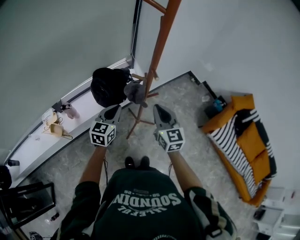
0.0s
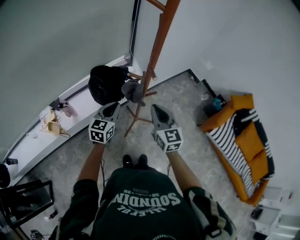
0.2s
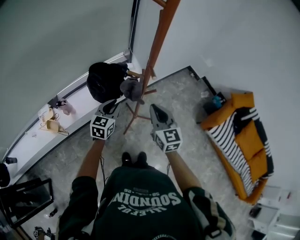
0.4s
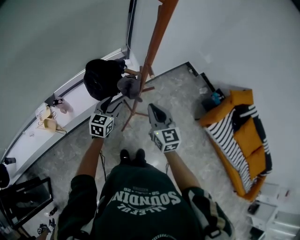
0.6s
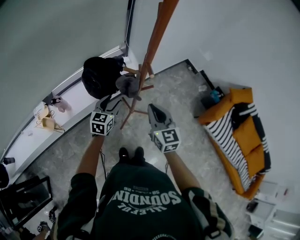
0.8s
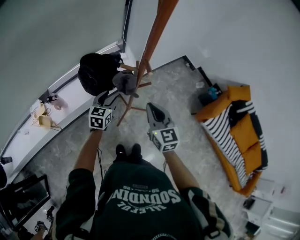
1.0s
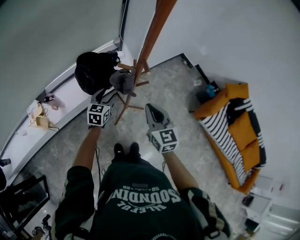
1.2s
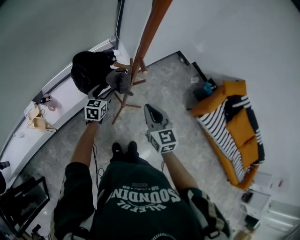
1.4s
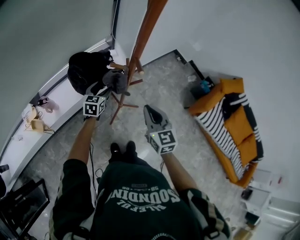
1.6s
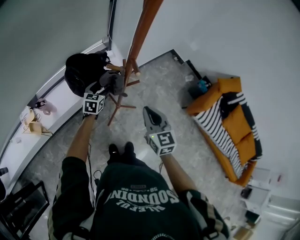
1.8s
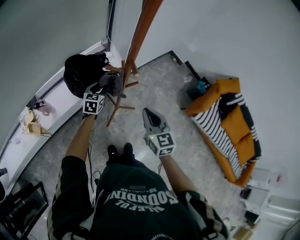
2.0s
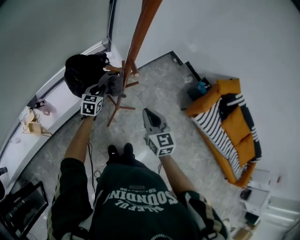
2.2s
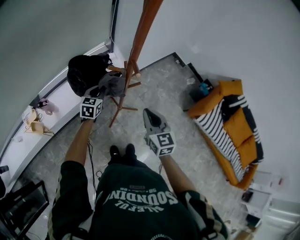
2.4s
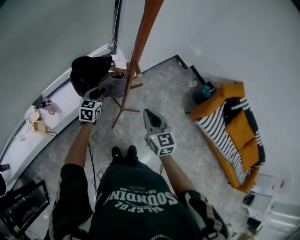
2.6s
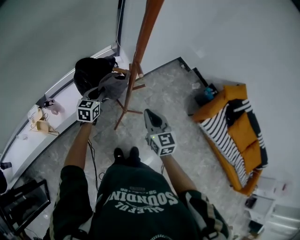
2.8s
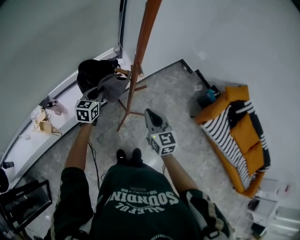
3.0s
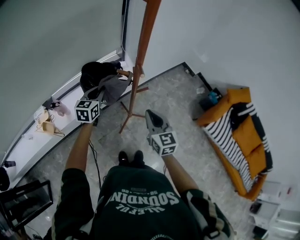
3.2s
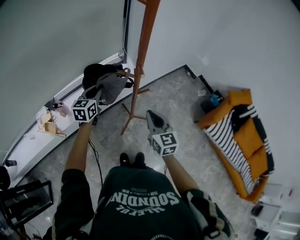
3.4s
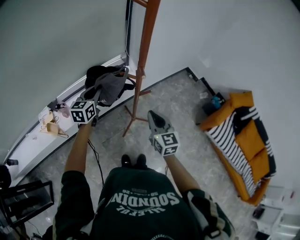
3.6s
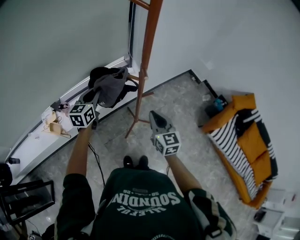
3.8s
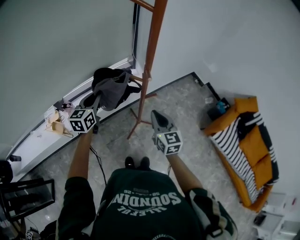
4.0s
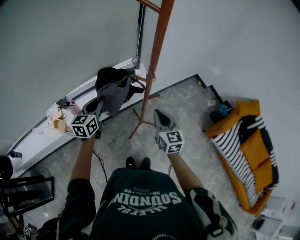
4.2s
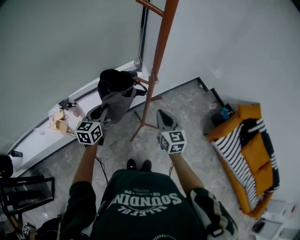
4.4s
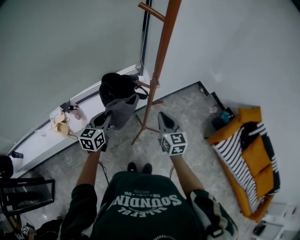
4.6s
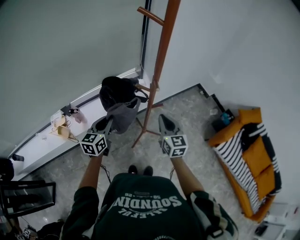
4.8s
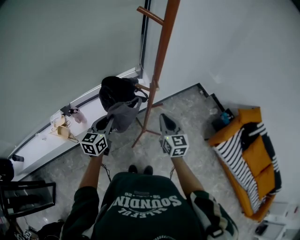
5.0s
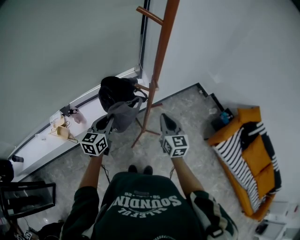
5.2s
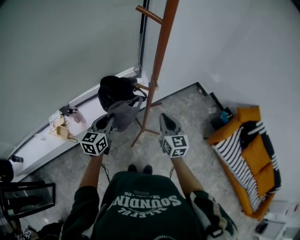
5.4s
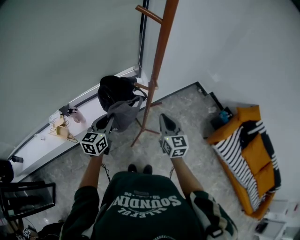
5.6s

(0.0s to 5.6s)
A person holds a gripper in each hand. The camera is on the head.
0.0s - 1.4s: The right gripper heads downward, covering some 5 cm. Meanwhile the left gripper shifts some 15 cm downward and forward, and opens.
1.4s - 2.8s: The left gripper is displaced upward by roughly 5 cm, and closes up.
2.8s - 4.2s: The left gripper travels upward, backward and to the left by roughly 15 cm.
4.2s - 5.6s: The left gripper moves about 5 cm.

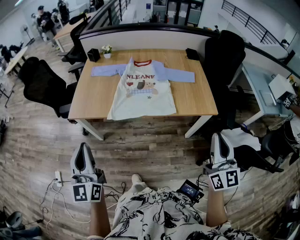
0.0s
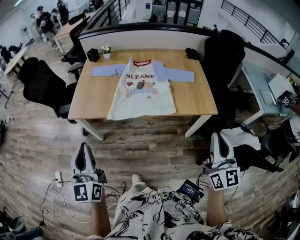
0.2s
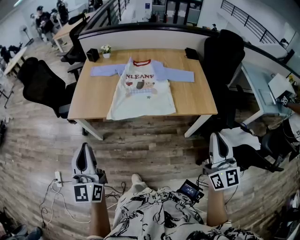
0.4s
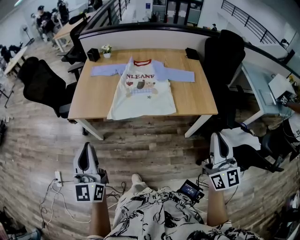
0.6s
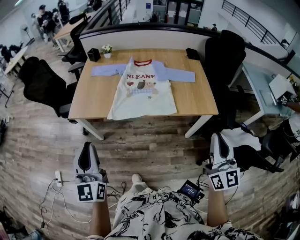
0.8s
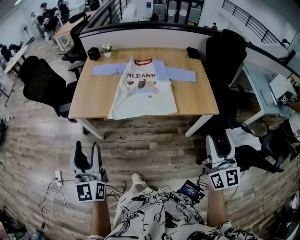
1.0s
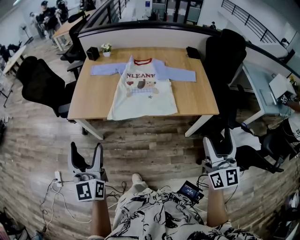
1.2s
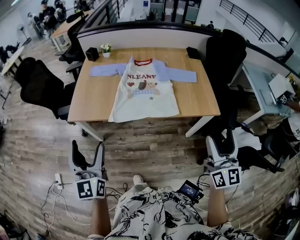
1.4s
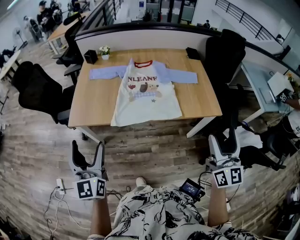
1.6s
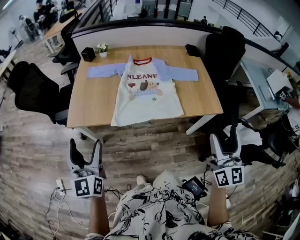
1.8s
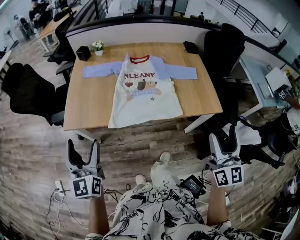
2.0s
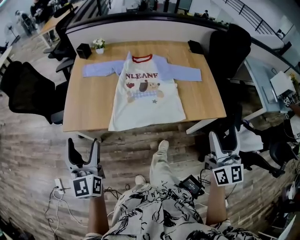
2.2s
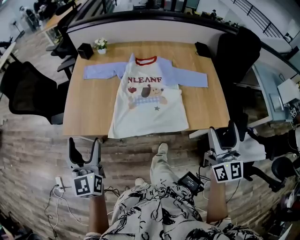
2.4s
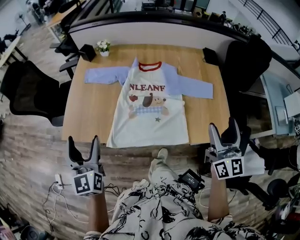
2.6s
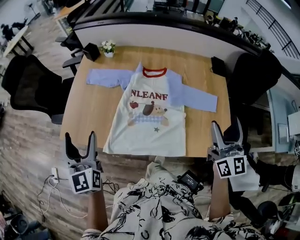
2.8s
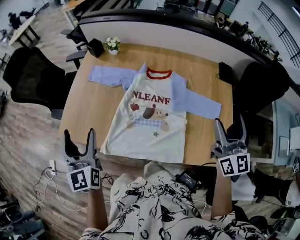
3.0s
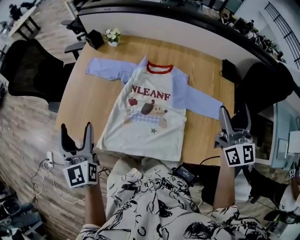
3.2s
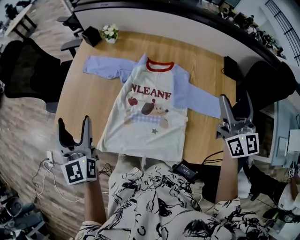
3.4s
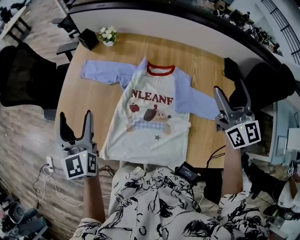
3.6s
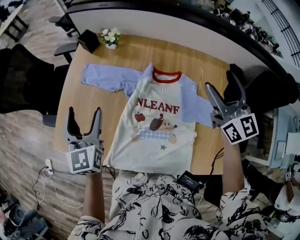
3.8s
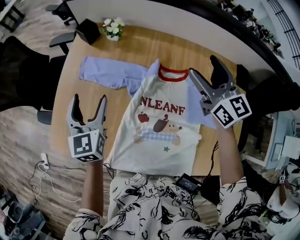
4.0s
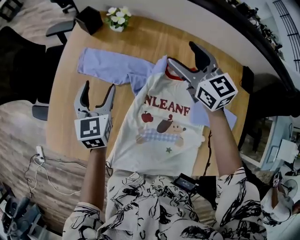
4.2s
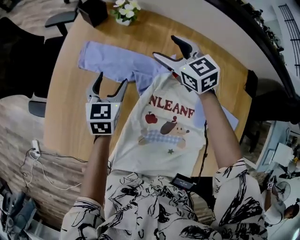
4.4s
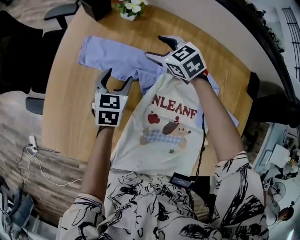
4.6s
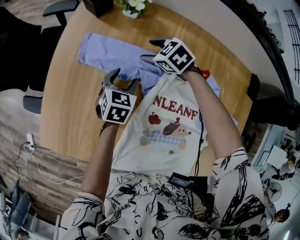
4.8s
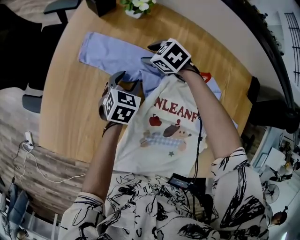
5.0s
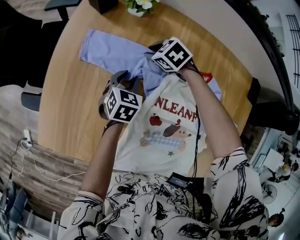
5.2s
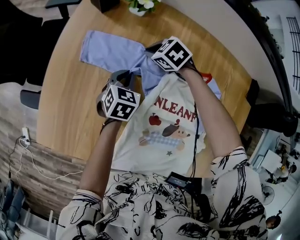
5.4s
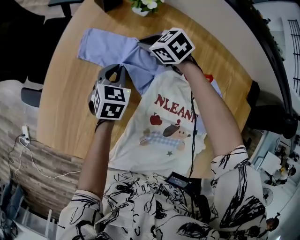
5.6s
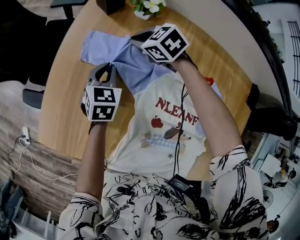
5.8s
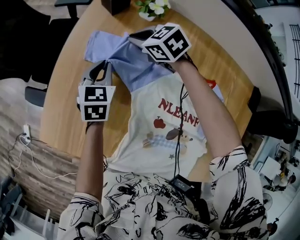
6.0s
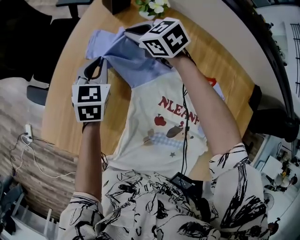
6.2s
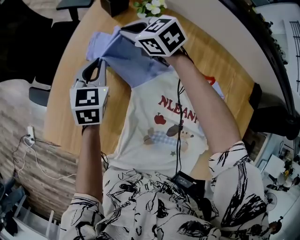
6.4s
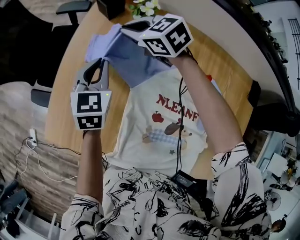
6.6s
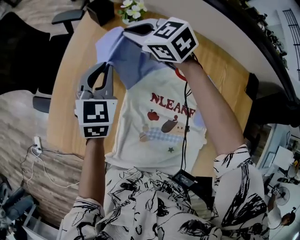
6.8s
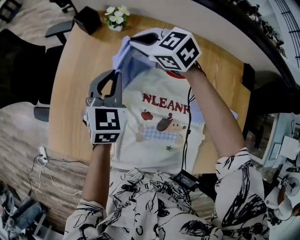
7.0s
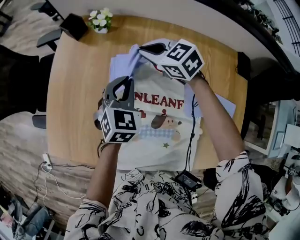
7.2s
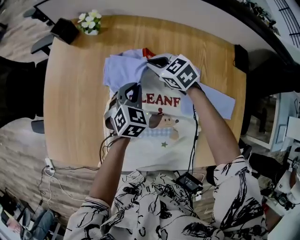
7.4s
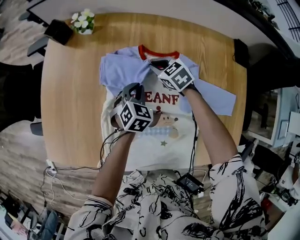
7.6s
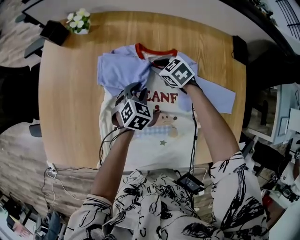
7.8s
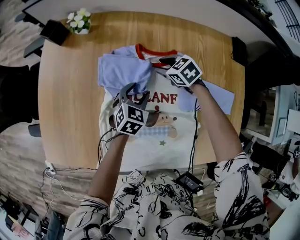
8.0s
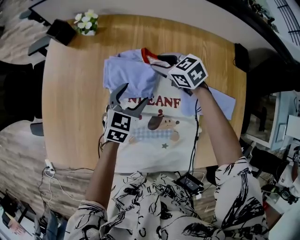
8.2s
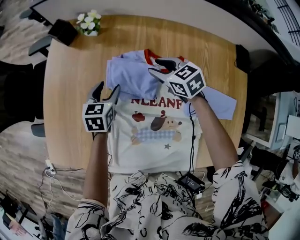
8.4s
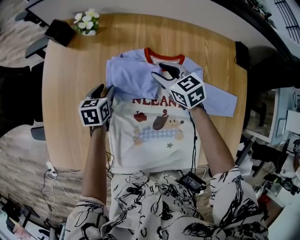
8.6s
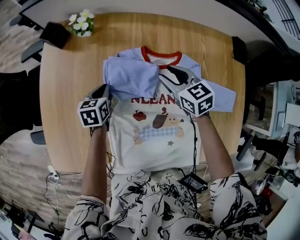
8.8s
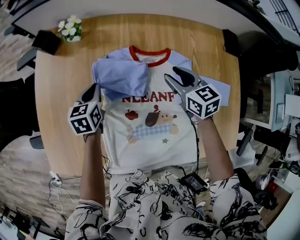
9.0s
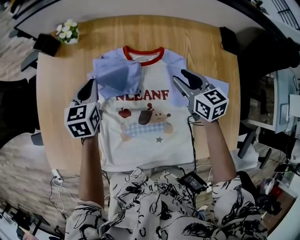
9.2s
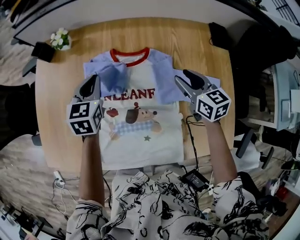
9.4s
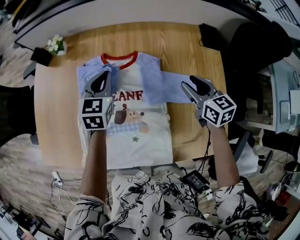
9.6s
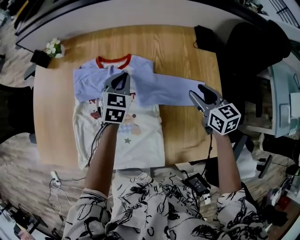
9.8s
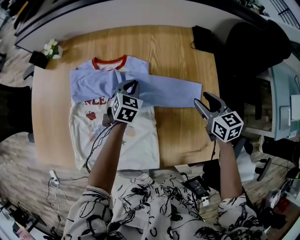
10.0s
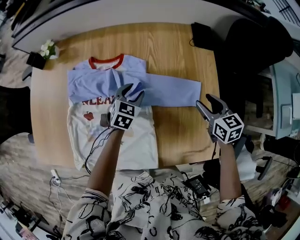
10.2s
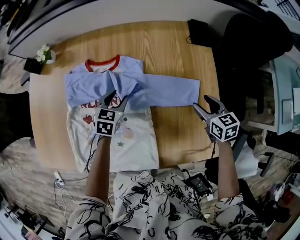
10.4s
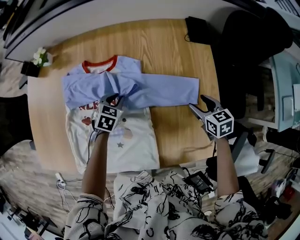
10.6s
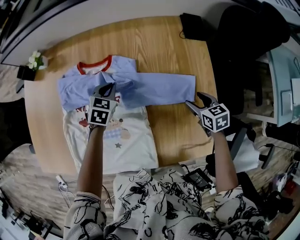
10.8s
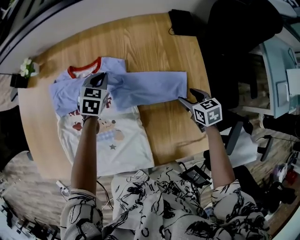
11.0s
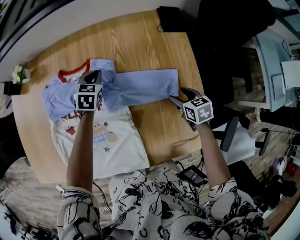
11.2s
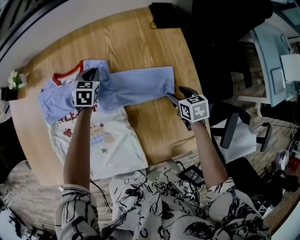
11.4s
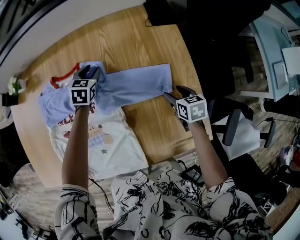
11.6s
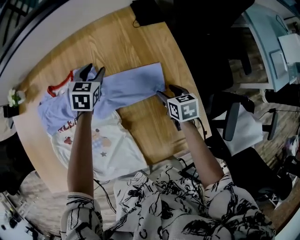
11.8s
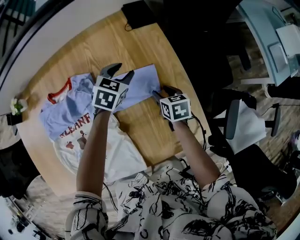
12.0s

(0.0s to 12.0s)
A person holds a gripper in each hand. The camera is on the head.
0.0s - 1.6s: The right gripper ends up roughly 5 cm from where it was, and opens its fingers; the left gripper is displaced forward by approximately 10 cm, and opens.
1.6s - 3.0s: Both grippers move forward, about 40 cm. The left gripper rotates some 20 degrees.
3.0s - 4.4s: The left gripper moves forward and downward, approximately 40 cm, and changes its angle by some 30 degrees. Meanwhile the right gripper shifts approximately 60 cm forward, to the left and downward, and tilts its fingers about 40 degrees downward.
4.4s - 6.0s: The right gripper is displaced to the left, forward and downward by approximately 20 cm, rotates some 30 degrees, and closes up; the left gripper is displaced forward and to the left by about 10 cm, moves roughly 10 cm downward and comes back, and closes.
6.0s - 7.6s: The right gripper goes upward and returns, about 15 cm each way, and changes its angle by some 30 degrees. The left gripper goes upward and returns, roughly 15 cm each way, and swivels some 40 degrees.
7.6s - 9.0s: The left gripper travels to the left and forward by about 15 cm, turns by about 30 degrees, and opens, then closes again. Meanwhile the right gripper goes approximately 15 cm upward, backward and to the right, rotates approximately 30 degrees, and opens up.
9.0s - 10.4s: The right gripper goes approximately 40 cm to the right and backward. Meanwhile the left gripper travels to the right by about 35 cm, swivels some 30 degrees, and opens its fingers.
10.4s - 12.0s: The left gripper goes about 30 cm to the right, changes its angle by about 30 degrees, and closes and opens again. Meanwhile the right gripper shifts about 10 cm downward, and changes its angle by roughly 30 degrees.

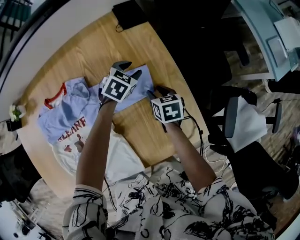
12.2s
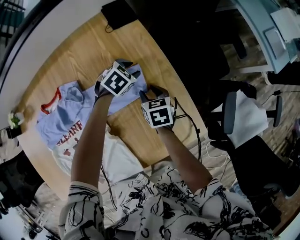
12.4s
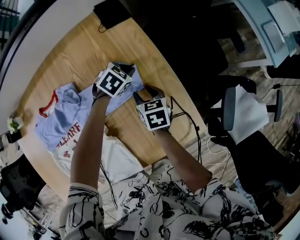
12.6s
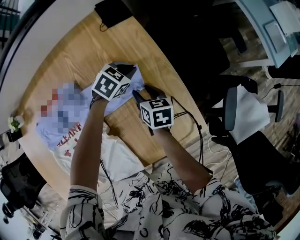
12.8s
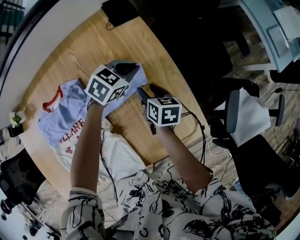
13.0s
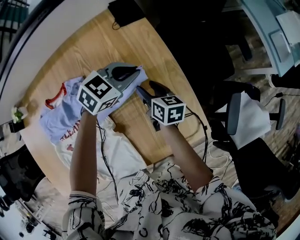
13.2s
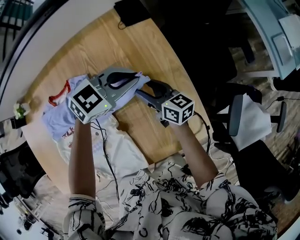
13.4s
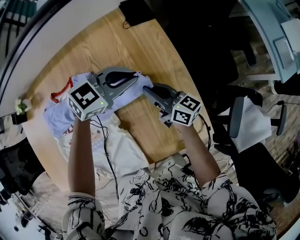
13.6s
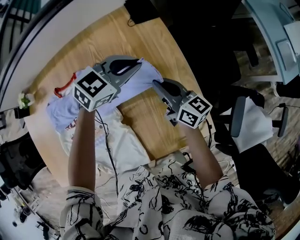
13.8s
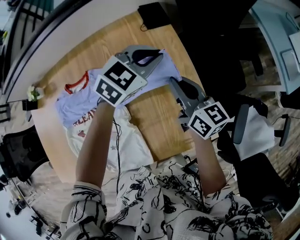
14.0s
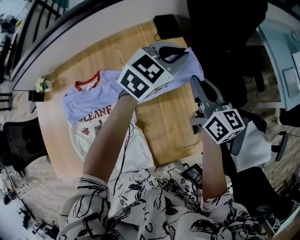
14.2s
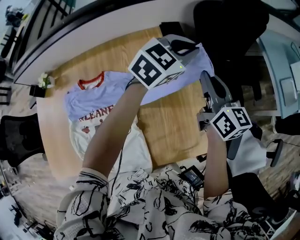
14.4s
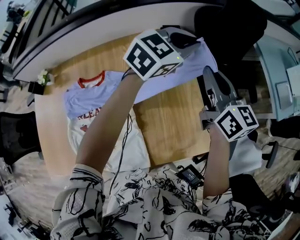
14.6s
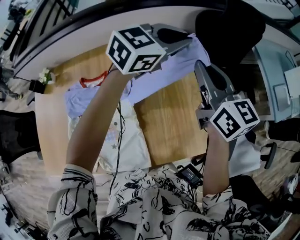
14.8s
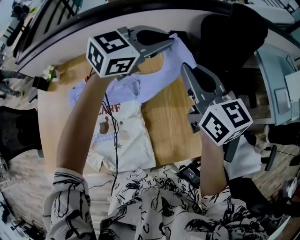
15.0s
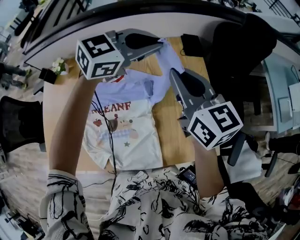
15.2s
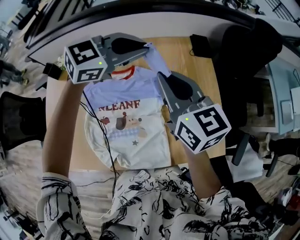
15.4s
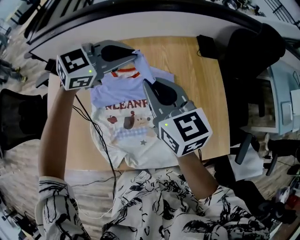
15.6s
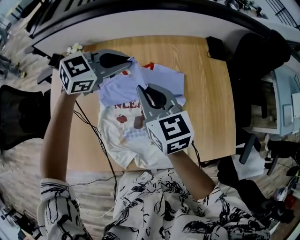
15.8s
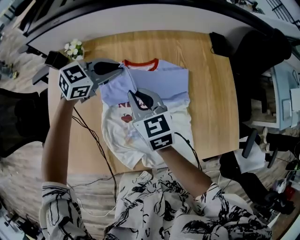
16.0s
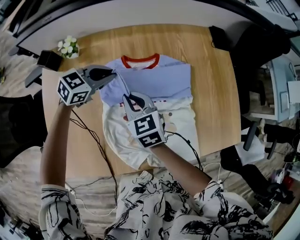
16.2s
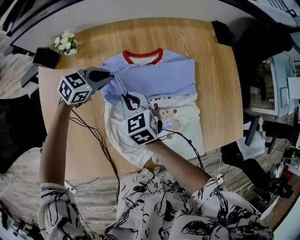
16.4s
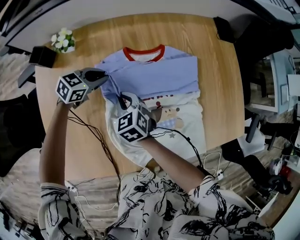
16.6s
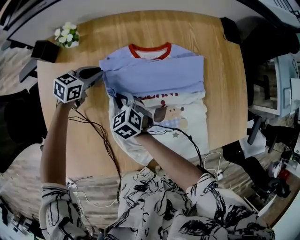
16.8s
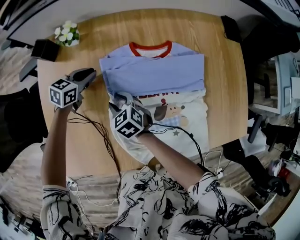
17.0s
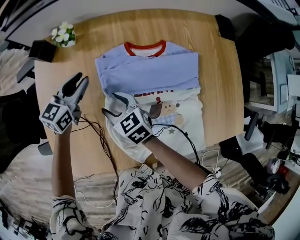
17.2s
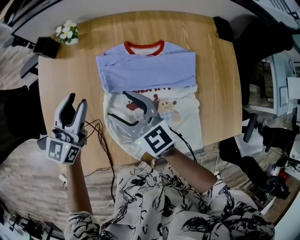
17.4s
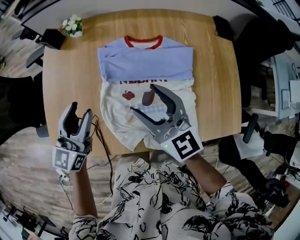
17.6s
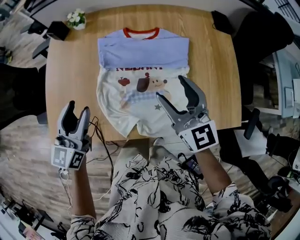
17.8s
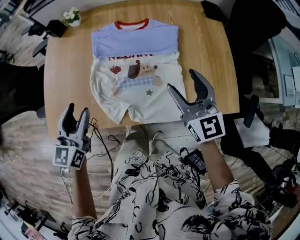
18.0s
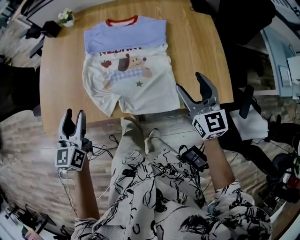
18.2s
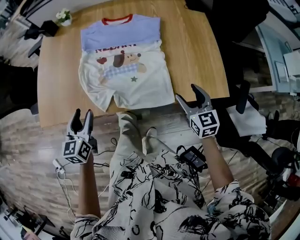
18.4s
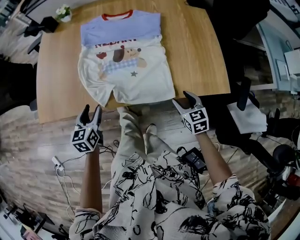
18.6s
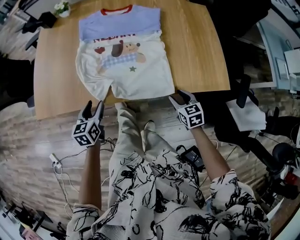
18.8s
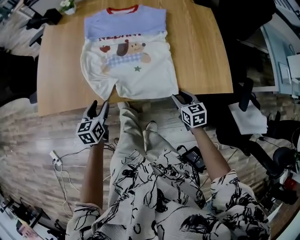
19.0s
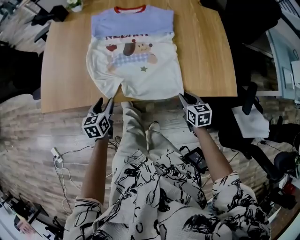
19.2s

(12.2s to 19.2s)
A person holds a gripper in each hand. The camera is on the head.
12.2s - 13.6s: The right gripper is displaced upward and to the left by roughly 10 cm, tips its fingers upward by about 50 degrees, and closes its fingers, while the left gripper is displaced upward and backward by approximately 15 cm, rotates approximately 30 degrees, and closes up.
13.6s - 15.0s: Both grippers move upward, approximately 30 cm. The right gripper rotates roughly 30 degrees, while the left gripper turns by some 20 degrees.
15.0s - 16.4s: The two grippers travel together, to the left, about 50 cm. The grippers both shift downward by some 30 cm. The right gripper tips its fingers downward by approximately 30 degrees; the left gripper changes its angle by some 30 degrees.
16.4s - 17.8s: The right gripper moves approximately 30 cm, tips its fingers upward by some 30 degrees, and opens up. The left gripper ends up approximately 35 cm from where it was, turns by some 60 degrees, and opens up.
17.8s - 19.2s: The right gripper goes approximately 40 cm downward, backward and to the right, points its fingers some 30 degrees further downward, and closes. Meanwhile the left gripper moves downward and backward, approximately 30 cm, and swivels roughly 30 degrees.
